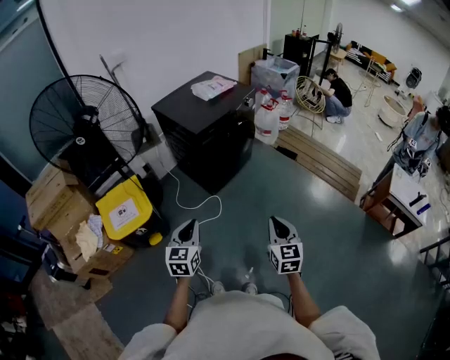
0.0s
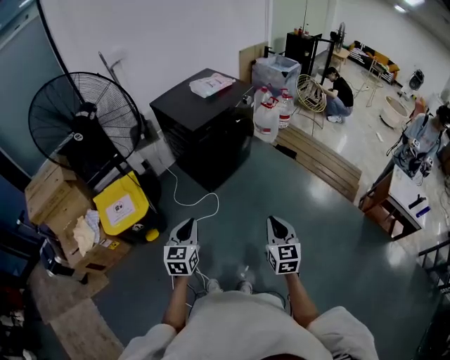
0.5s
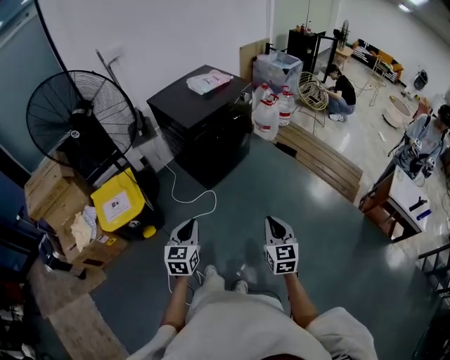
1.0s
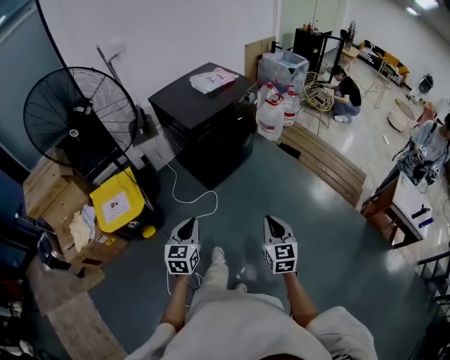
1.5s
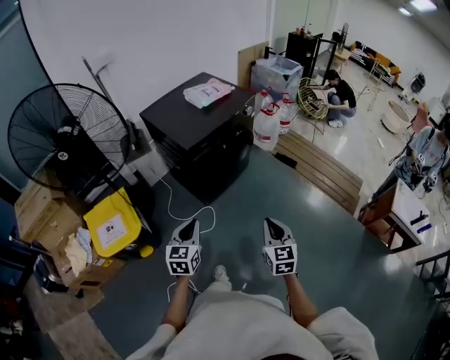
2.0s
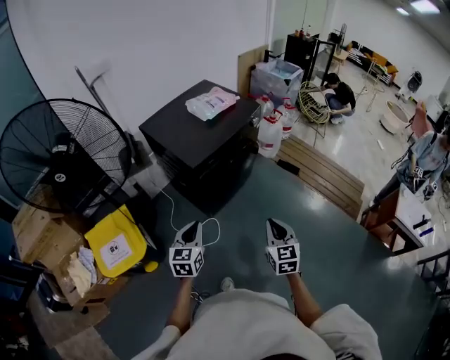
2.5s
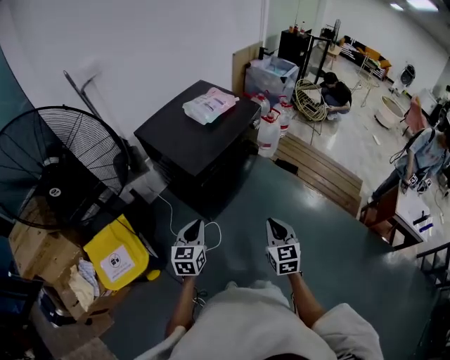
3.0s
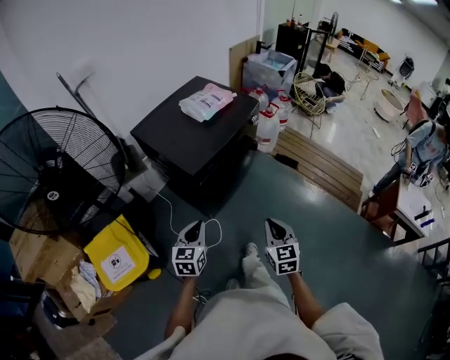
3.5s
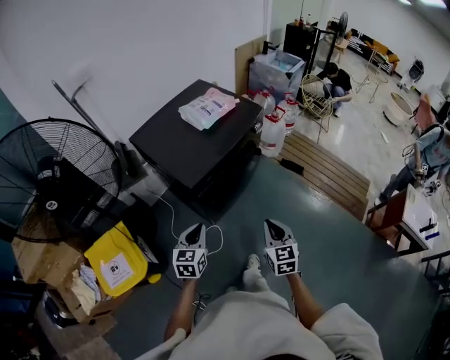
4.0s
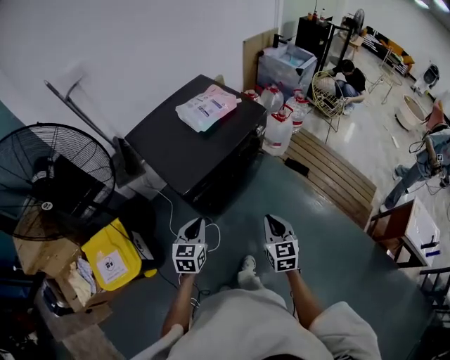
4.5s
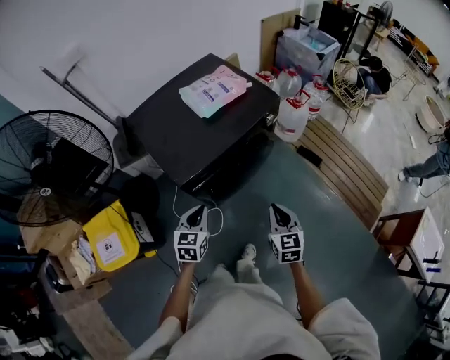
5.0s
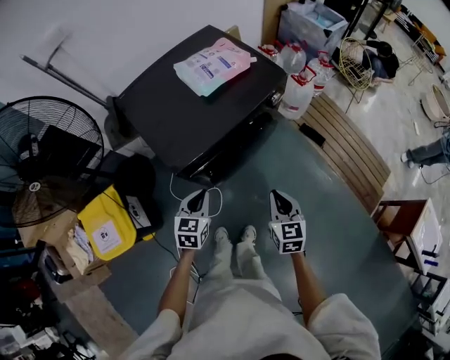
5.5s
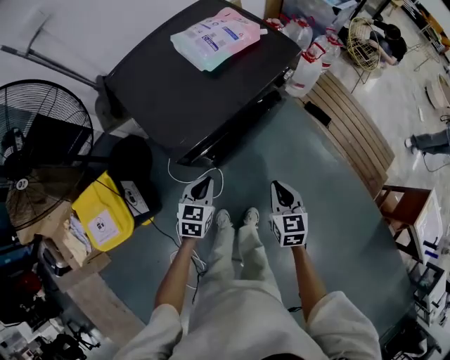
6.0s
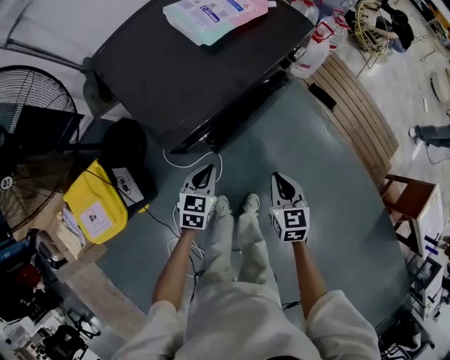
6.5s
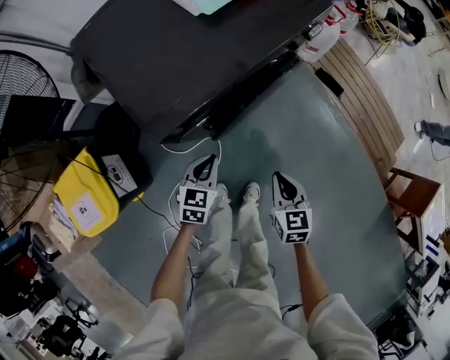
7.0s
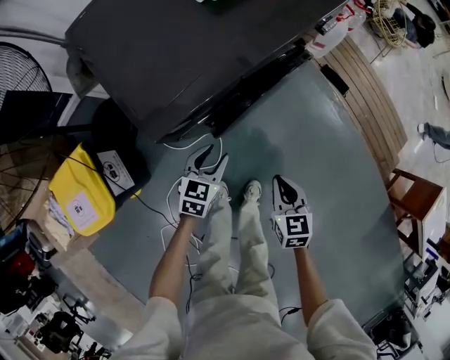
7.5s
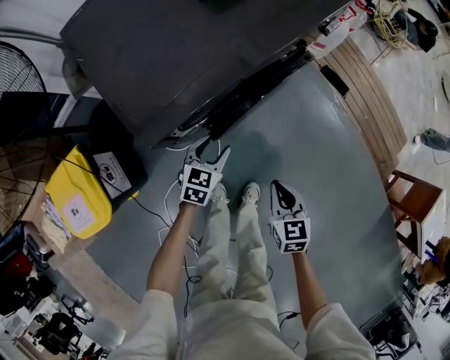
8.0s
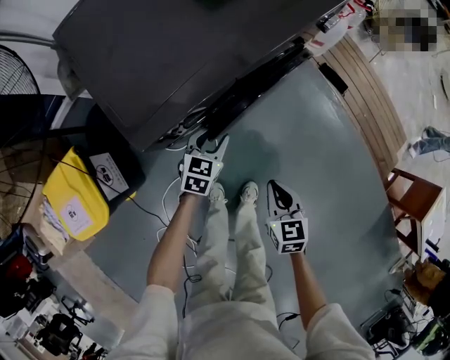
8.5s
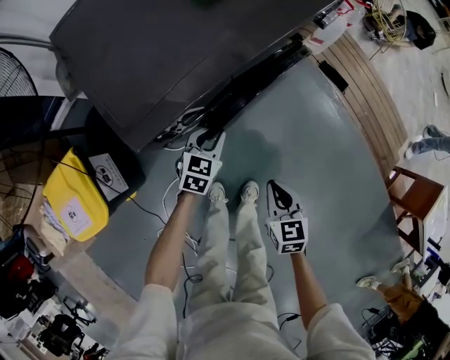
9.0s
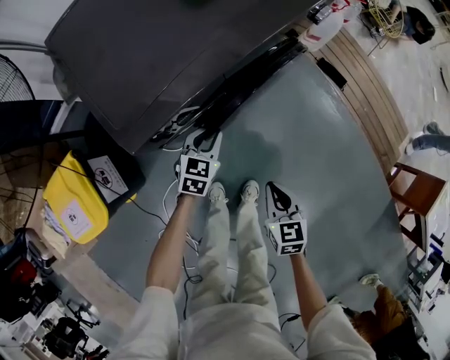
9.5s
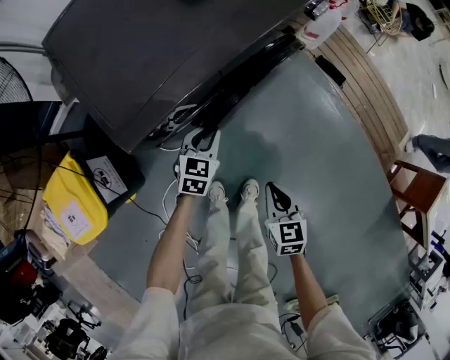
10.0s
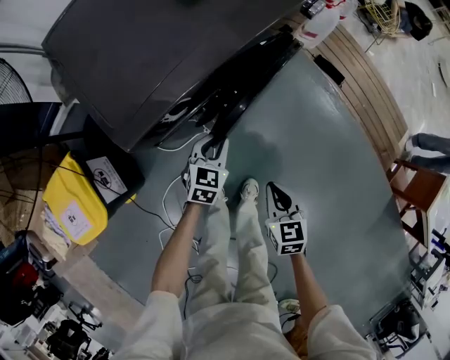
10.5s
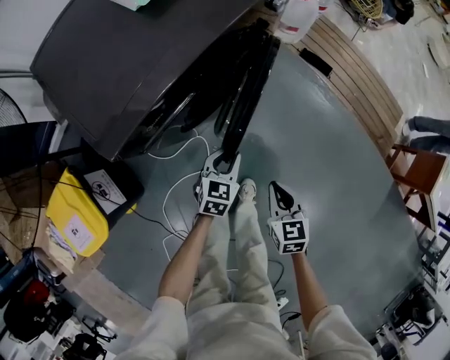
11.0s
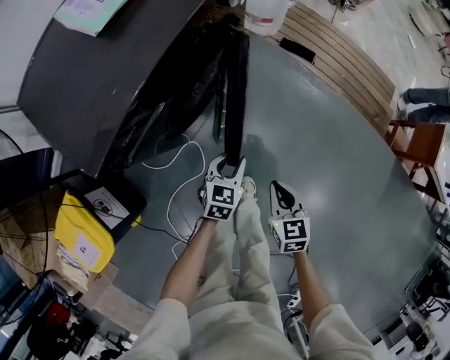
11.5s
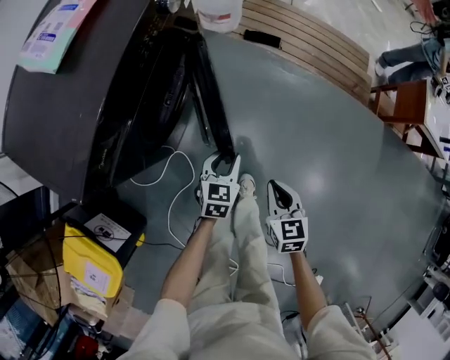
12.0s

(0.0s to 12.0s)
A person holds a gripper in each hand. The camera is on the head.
0.0s - 2.0s: The grippers both shift forward by about 15 cm.
2.0s - 4.0s: Both grippers move forward, approximately 25 cm.
4.0s - 6.0s: The right gripper moves forward and downward, roughly 20 cm; the left gripper moves downward and forward, roughly 20 cm.
6.0s - 8.0s: Both grippers move downward, roughly 20 cm. The left gripper opens.
8.0s - 10.0s: The left gripper closes up.
10.0s - 12.0s: The left gripper moves roughly 25 cm, and swivels approximately 20 degrees; the right gripper moves about 15 cm, and turns by some 30 degrees.

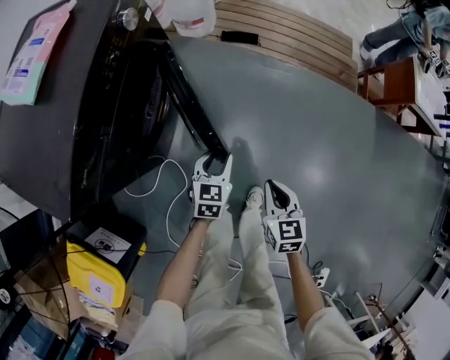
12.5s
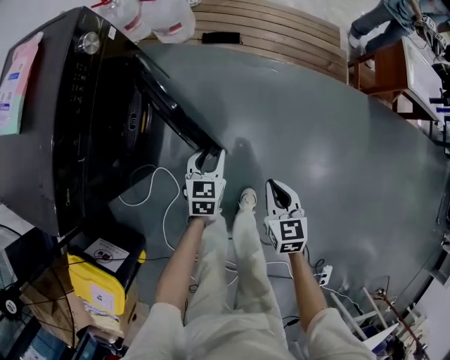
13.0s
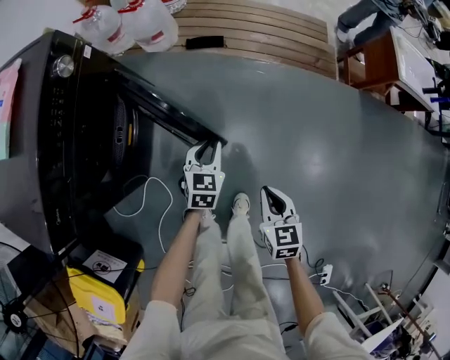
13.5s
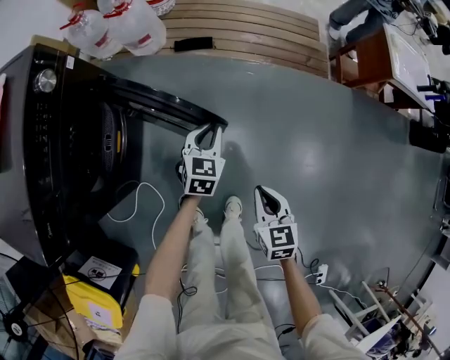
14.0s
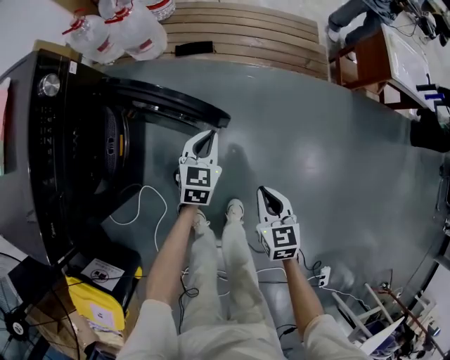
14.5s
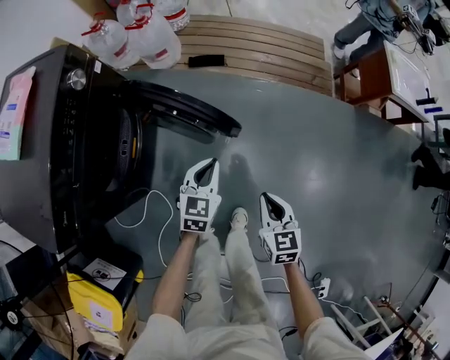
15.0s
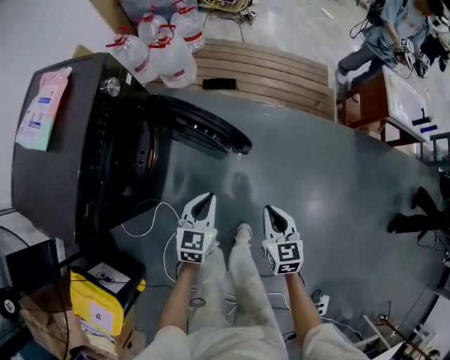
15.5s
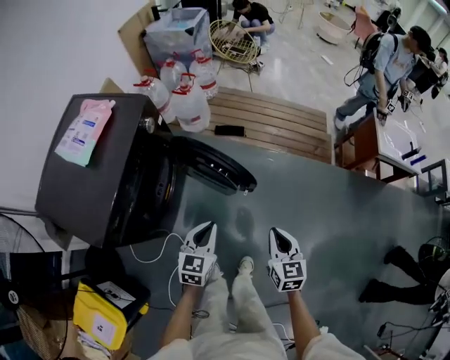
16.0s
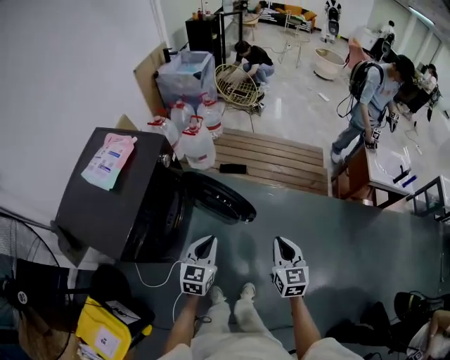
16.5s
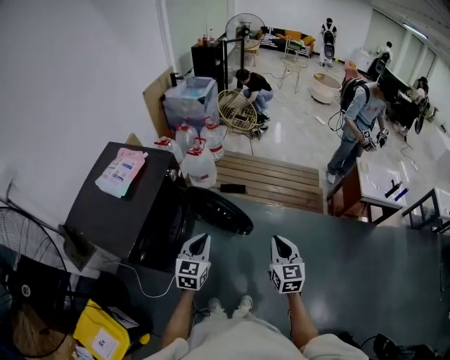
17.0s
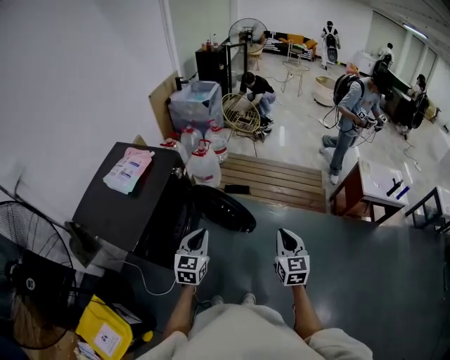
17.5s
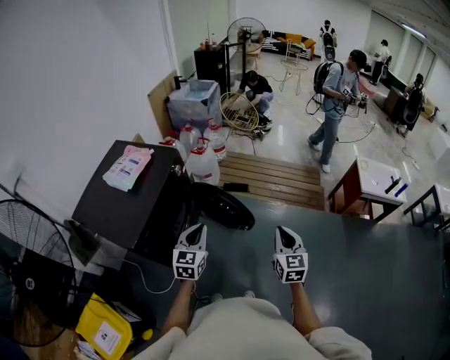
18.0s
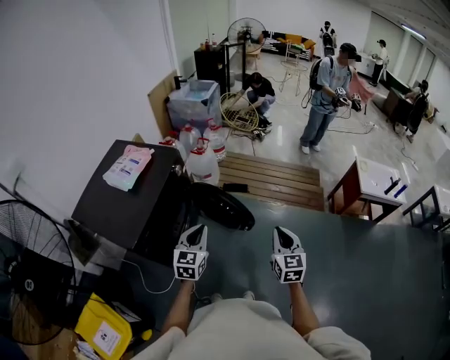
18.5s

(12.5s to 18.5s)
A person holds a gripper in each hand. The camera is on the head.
12.5s - 14.5s: The left gripper heads to the right and forward, covering approximately 20 cm, and closes its fingers, while the right gripper goes approximately 15 cm to the right.
14.5s - 16.5s: The right gripper shifts some 30 cm upward. The left gripper moves upward and backward, about 35 cm.
16.5s - 18.5s: Both grippers travel together upward, roughly 10 cm.

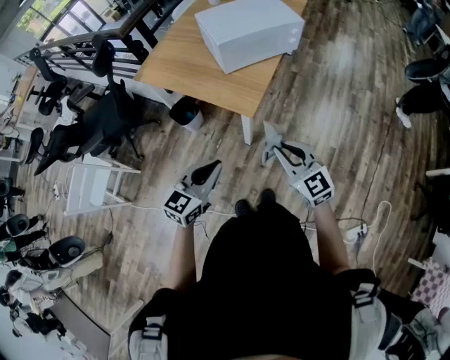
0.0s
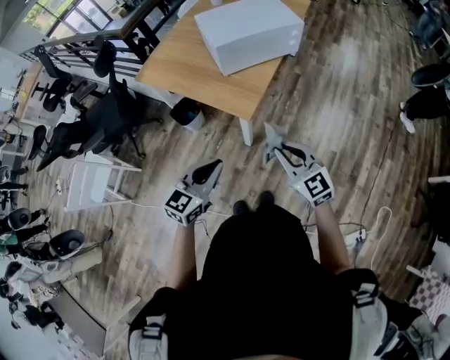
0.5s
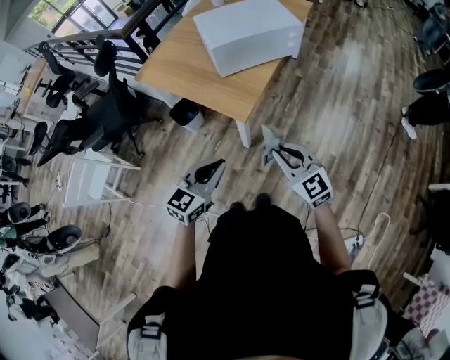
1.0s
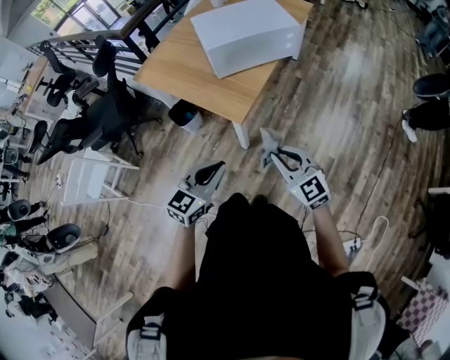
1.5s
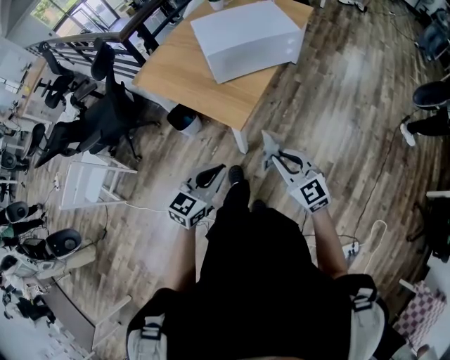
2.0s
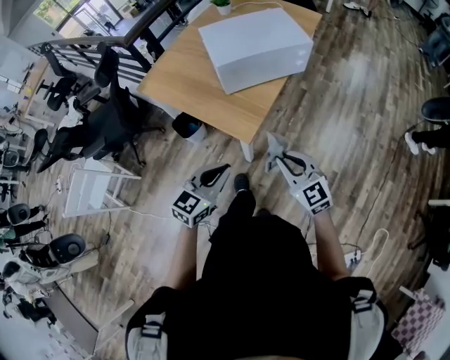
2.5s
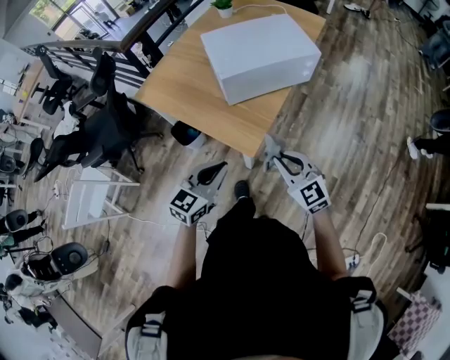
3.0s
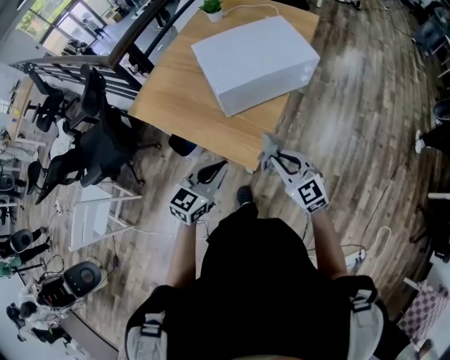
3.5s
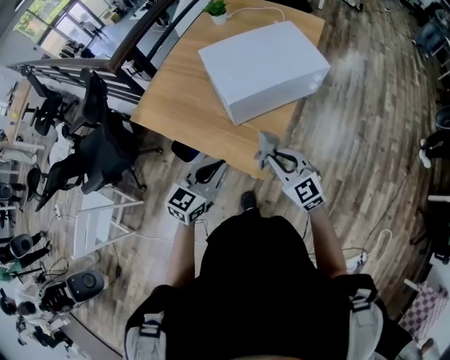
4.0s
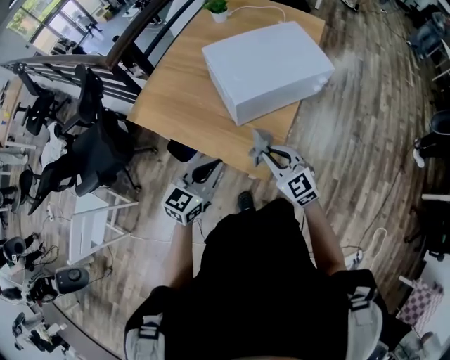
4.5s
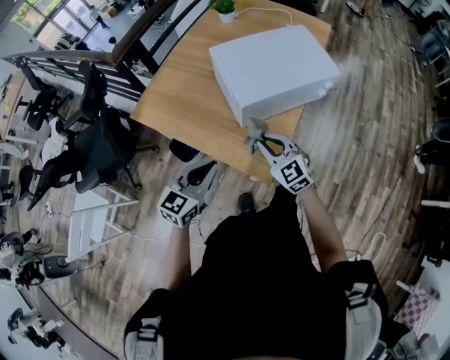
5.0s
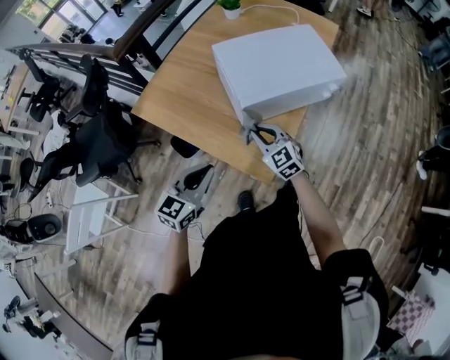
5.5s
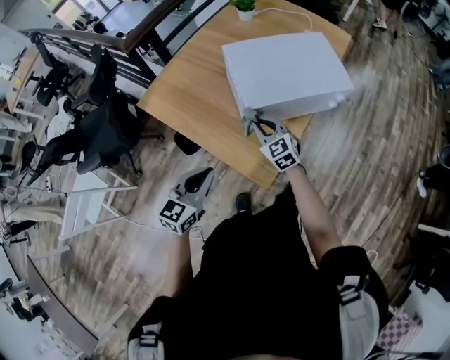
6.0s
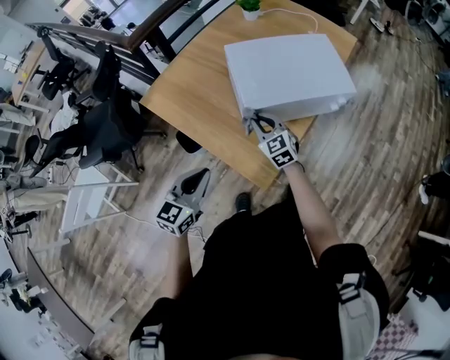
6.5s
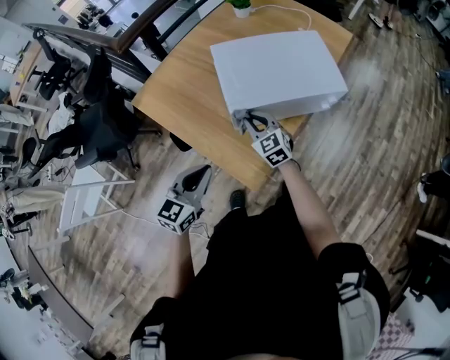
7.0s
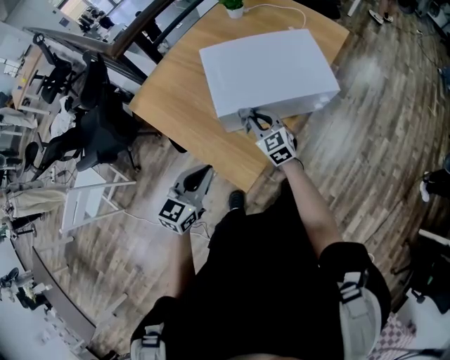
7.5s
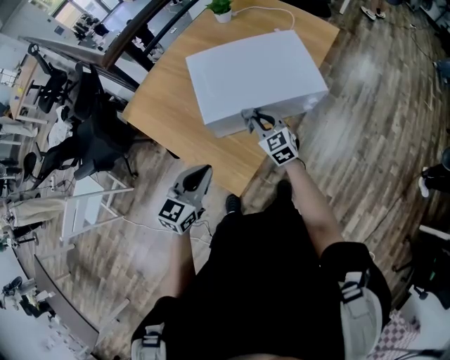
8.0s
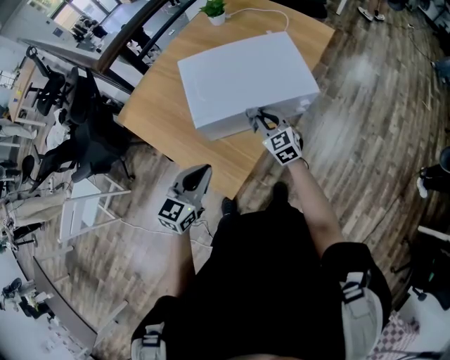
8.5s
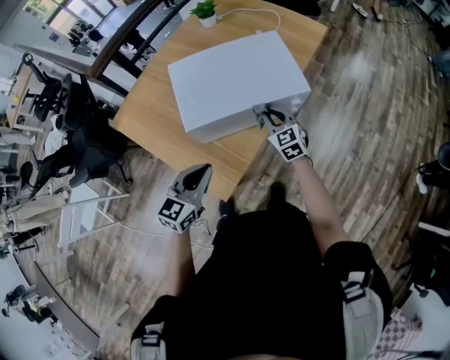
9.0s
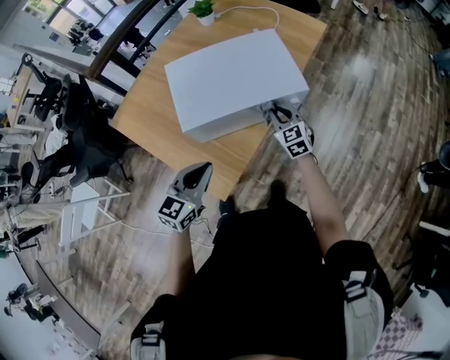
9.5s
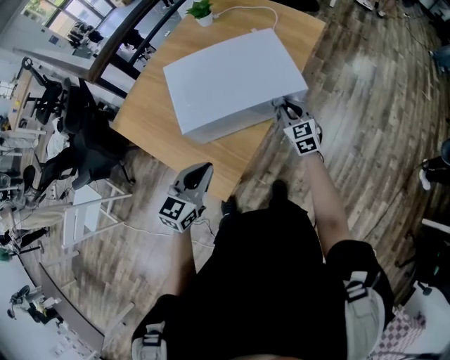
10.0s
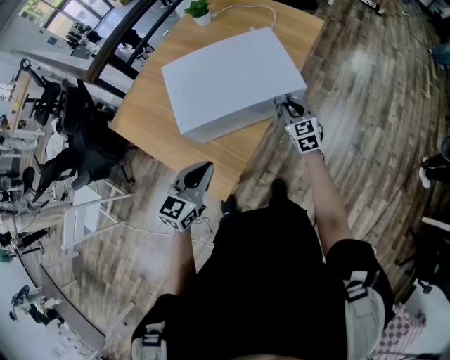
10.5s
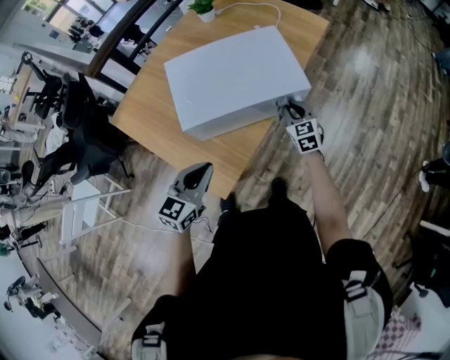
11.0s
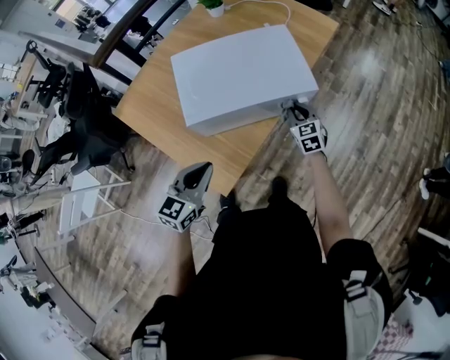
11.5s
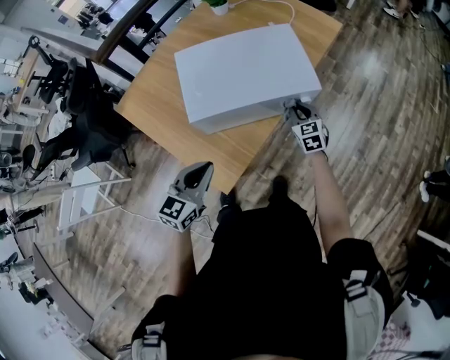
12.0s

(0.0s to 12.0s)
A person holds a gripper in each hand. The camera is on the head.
0.0s - 2.0s: Both grippers travel together to the right, roughly 10 cm.
2.0s - 4.0s: Both grippers travel together forward and to the left, about 30 cm.
4.0s - 6.0s: The right gripper moves forward, to the left and downward, about 20 cm; the left gripper shifts approximately 5 cm to the left.
6.0s - 8.0s: The two grippers go some 15 cm to the right.
8.0s - 10.0s: The right gripper moves to the right, about 20 cm. The left gripper shifts about 10 cm to the right.
10.0s - 12.0s: The right gripper is displaced downward by some 5 cm.
